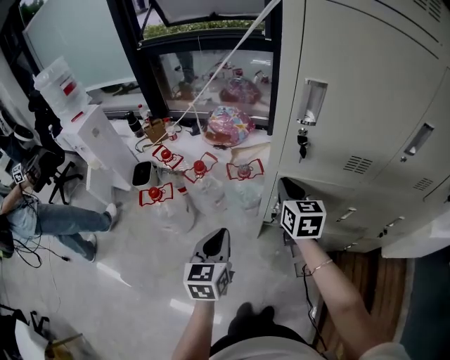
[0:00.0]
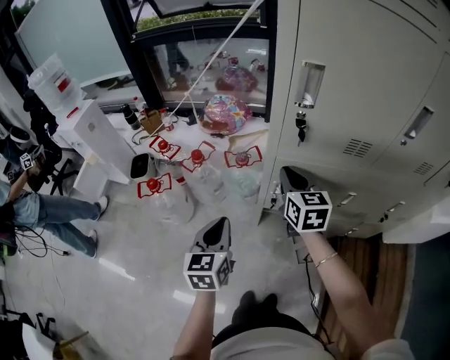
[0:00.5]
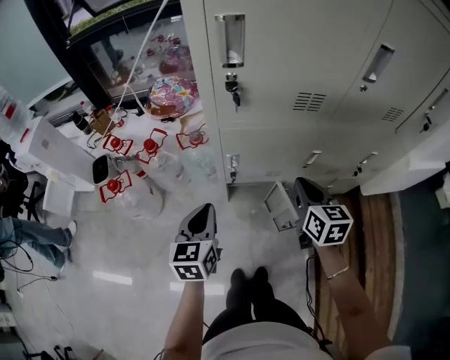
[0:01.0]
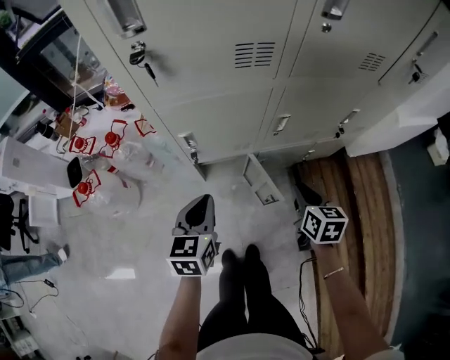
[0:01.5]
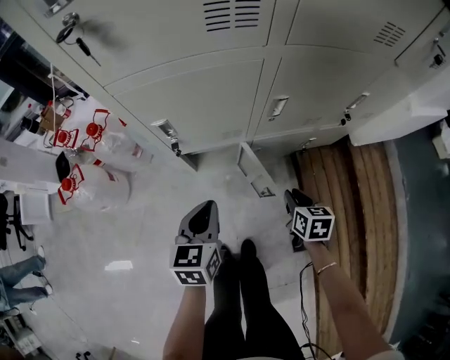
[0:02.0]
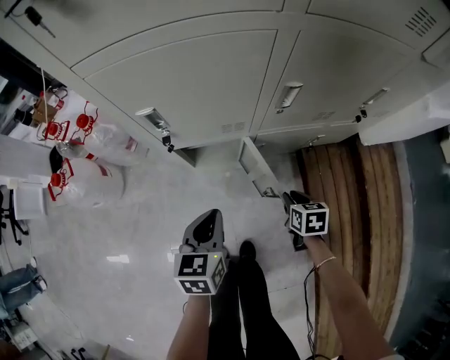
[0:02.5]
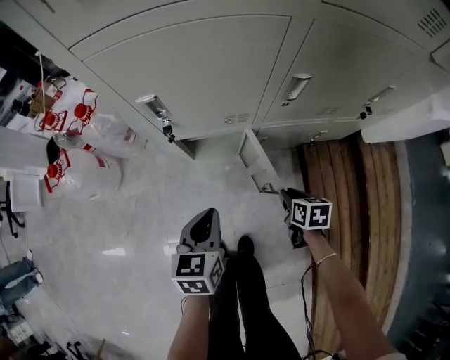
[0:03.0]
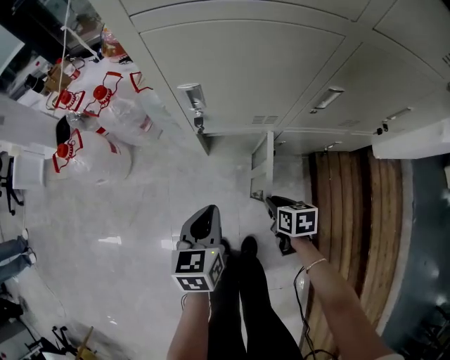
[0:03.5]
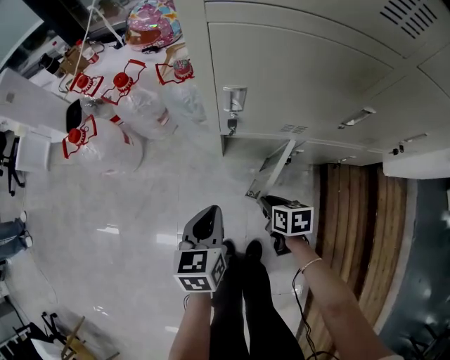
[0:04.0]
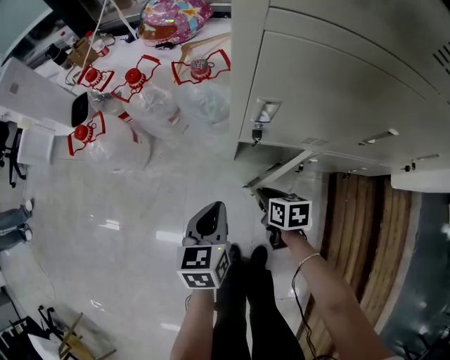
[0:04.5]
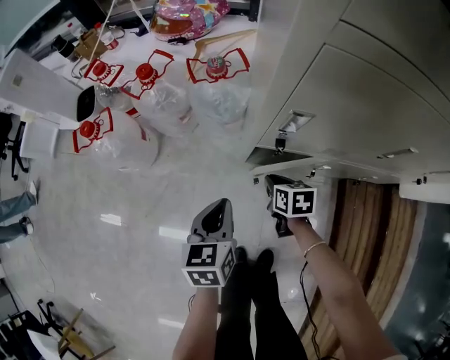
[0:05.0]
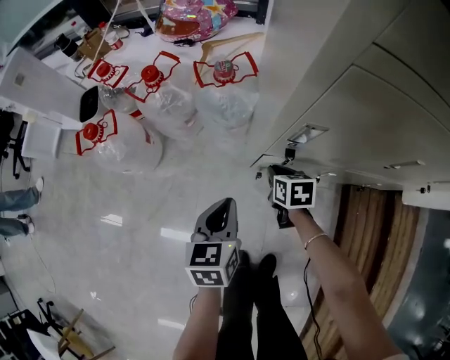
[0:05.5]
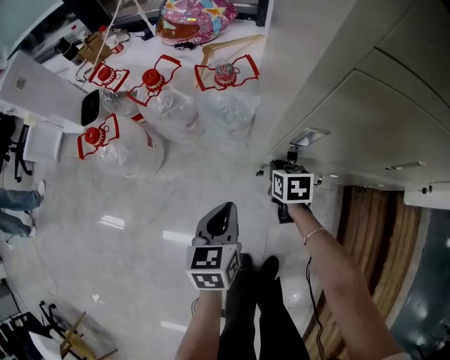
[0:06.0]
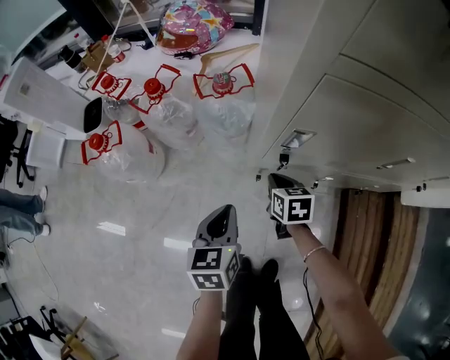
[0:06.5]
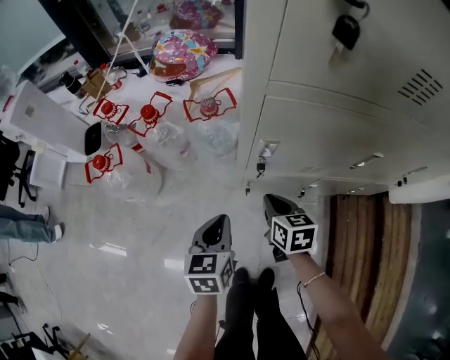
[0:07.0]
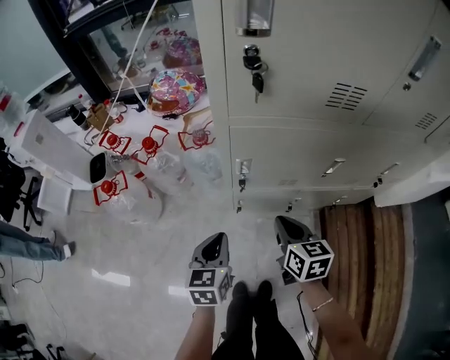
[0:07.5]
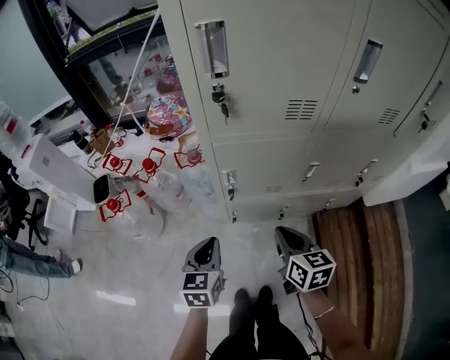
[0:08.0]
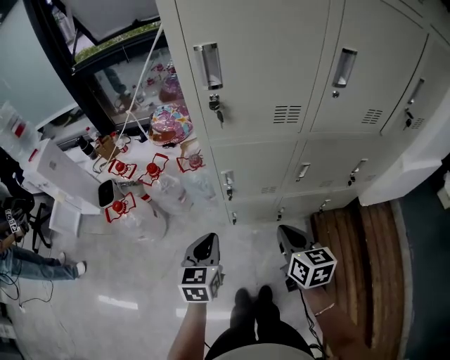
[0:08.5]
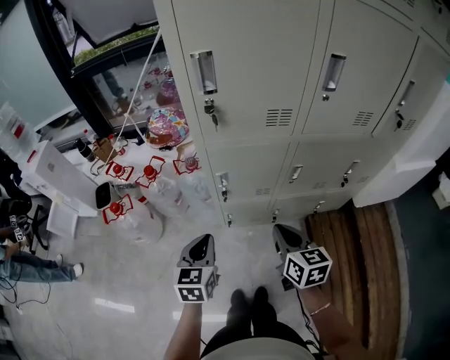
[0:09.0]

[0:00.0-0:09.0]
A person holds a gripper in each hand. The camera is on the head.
0:00.0 to 0:02.0: The right gripper travels downward, to the right and backward by roughly 50 cm, and changes its angle by roughly 40 degrees. The left gripper goes roughly 35 cm to the right and downward, and changes its angle by some 30 degrees.
0:02.0 to 0:04.5: The left gripper changes place by approximately 20 cm. Meanwhile the right gripper ends up roughly 35 cm from where it was, and changes its angle by some 30 degrees.
0:04.5 to 0:07.0: The left gripper moves upward, about 5 cm, while the right gripper travels upward by roughly 15 cm.
0:07.0 to 0:09.0: The left gripper goes some 25 cm upward and backward; the right gripper goes roughly 40 cm upward, backward and to the right.

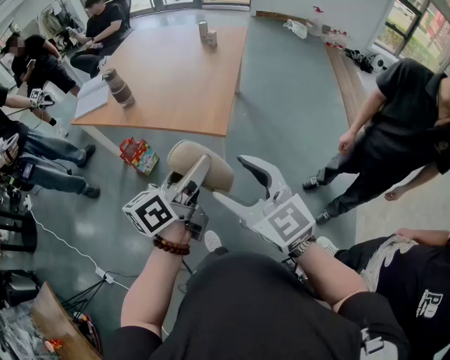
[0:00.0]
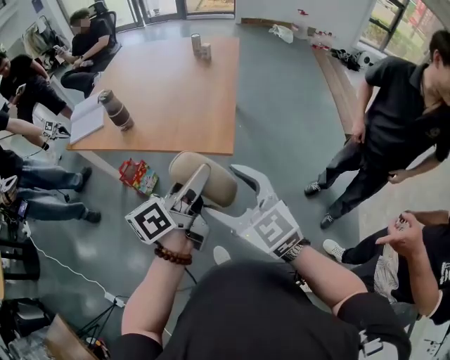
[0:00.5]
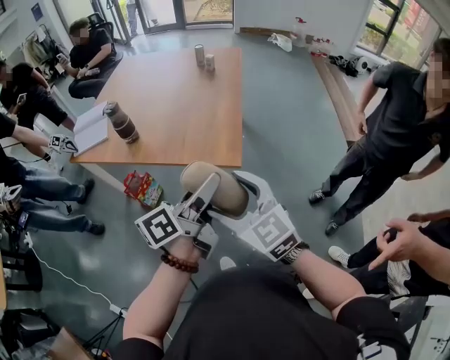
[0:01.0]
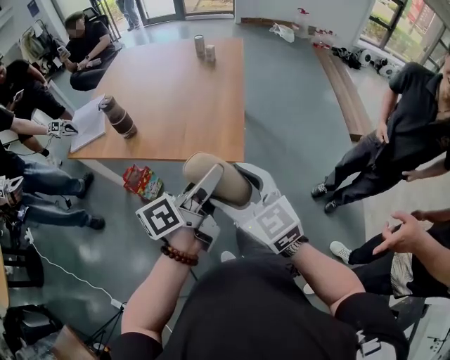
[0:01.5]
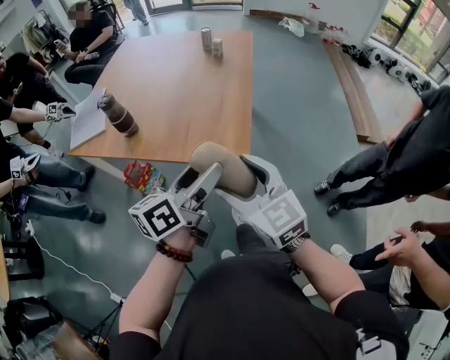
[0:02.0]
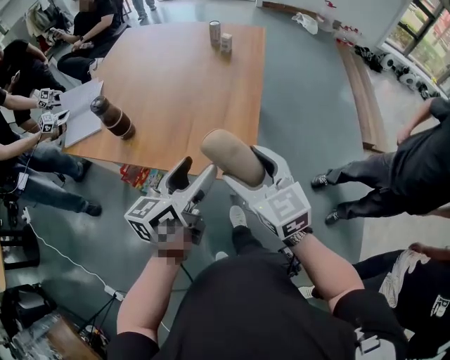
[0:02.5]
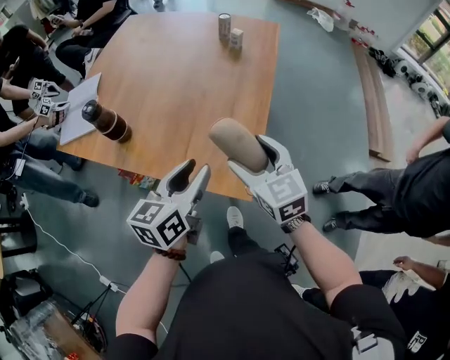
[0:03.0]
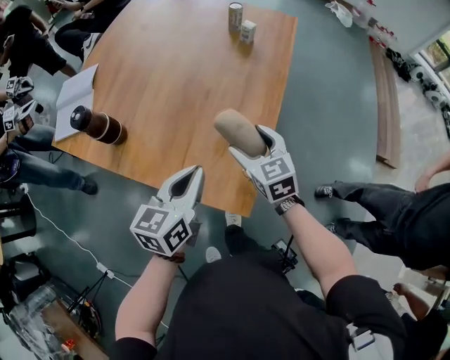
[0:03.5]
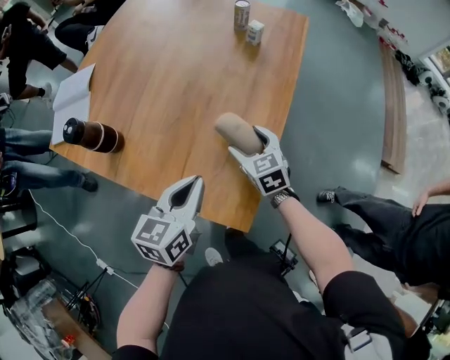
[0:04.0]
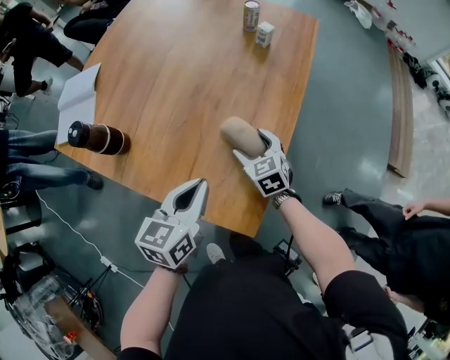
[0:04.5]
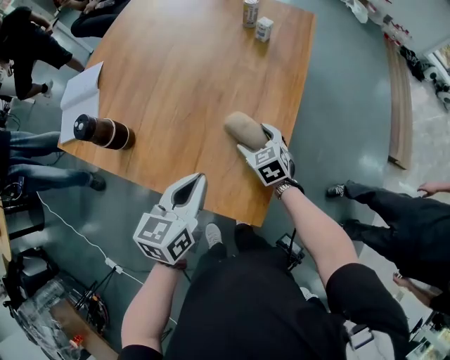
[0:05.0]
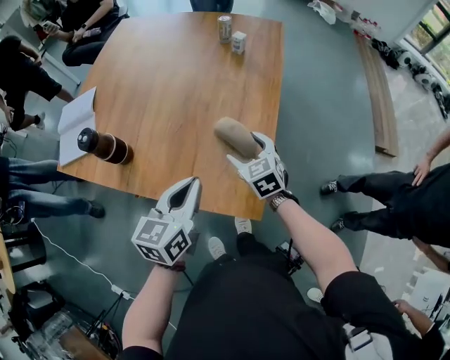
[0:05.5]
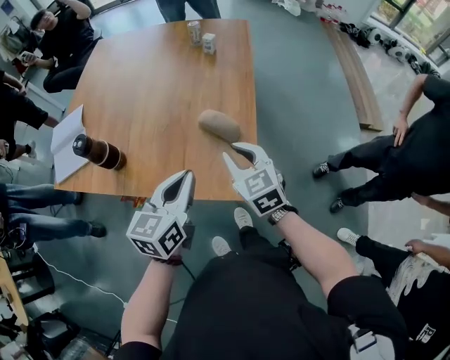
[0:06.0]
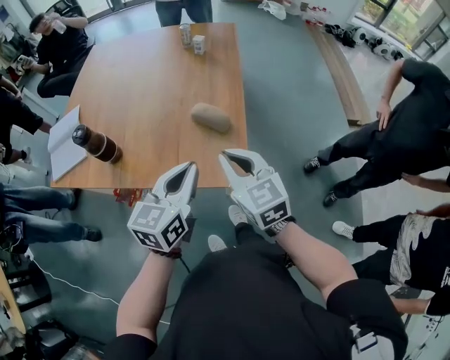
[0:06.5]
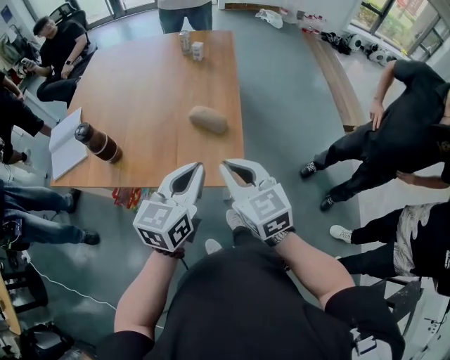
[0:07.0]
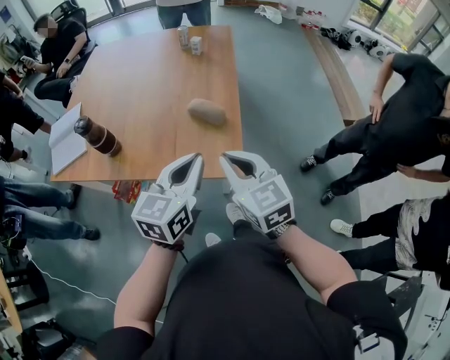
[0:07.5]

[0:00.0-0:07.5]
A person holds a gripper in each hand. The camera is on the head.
0:00.0 to 0:02.0: The right gripper moves forward and to the left, about 20 cm. Meanwhile the left gripper shifts roughly 15 cm forward.
0:02.0 to 0:04.0: The right gripper travels forward and downward by roughly 40 cm, and rotates approximately 20 degrees. The left gripper goes about 25 cm forward and downward, rotates about 30 degrees, and closes up.
0:04.0 to 0:05.5: There are only small adjustments of the grippers.
0:05.5 to 0:07.5: The right gripper travels backward and upward by about 30 cm, rotates roughly 20 degrees, and closes. Meanwhile the left gripper heads backward, upward and to the right, covering roughly 15 cm.

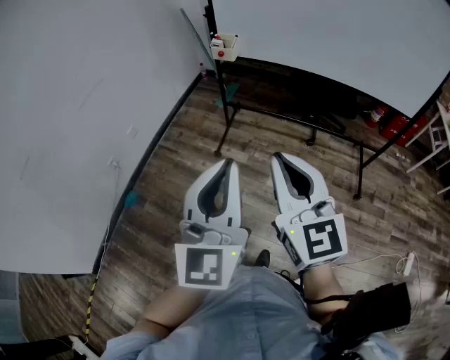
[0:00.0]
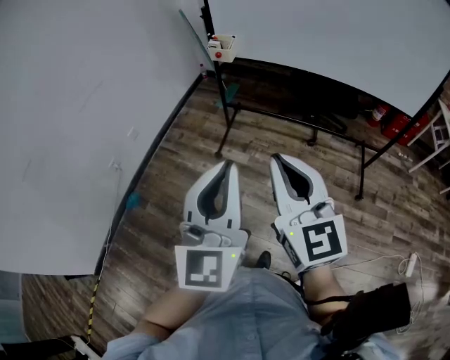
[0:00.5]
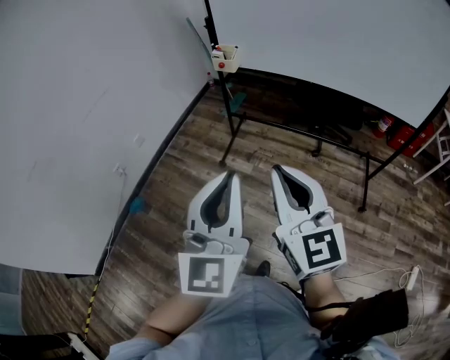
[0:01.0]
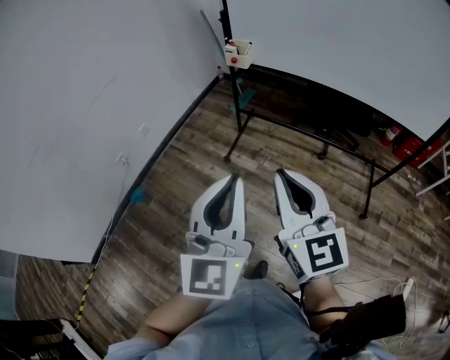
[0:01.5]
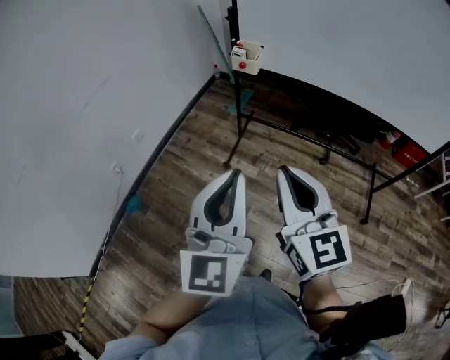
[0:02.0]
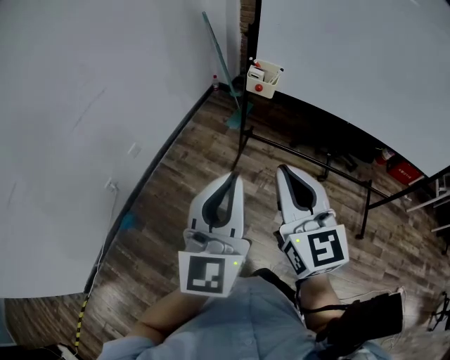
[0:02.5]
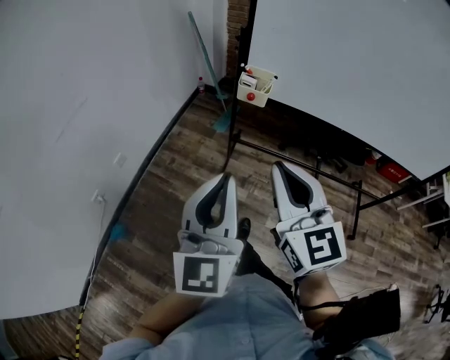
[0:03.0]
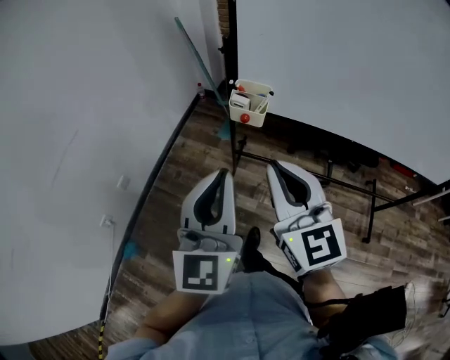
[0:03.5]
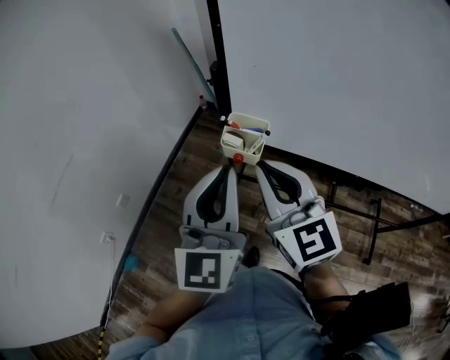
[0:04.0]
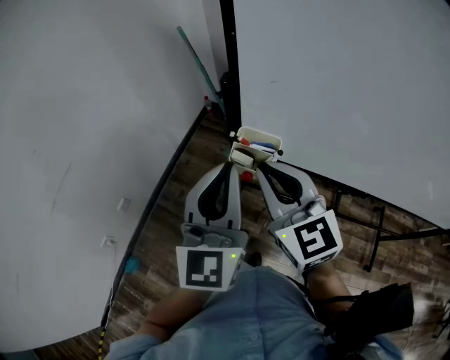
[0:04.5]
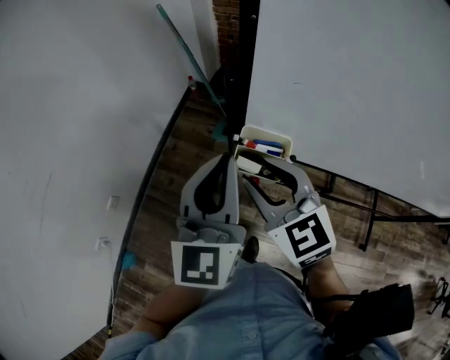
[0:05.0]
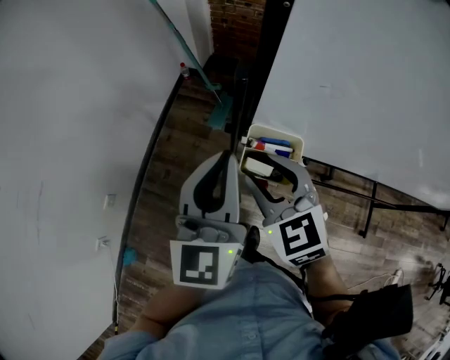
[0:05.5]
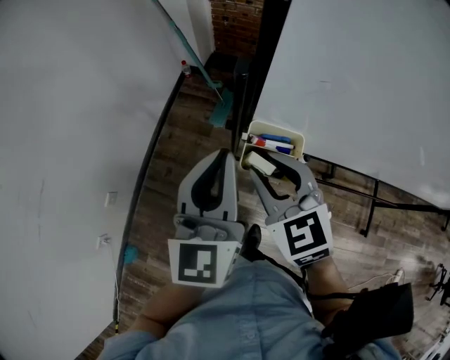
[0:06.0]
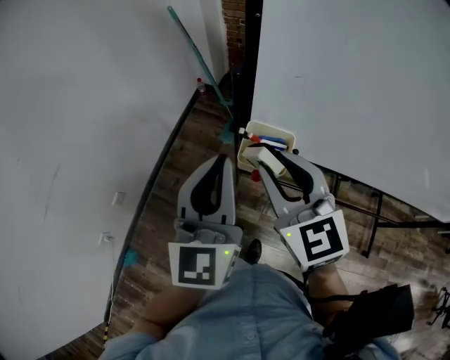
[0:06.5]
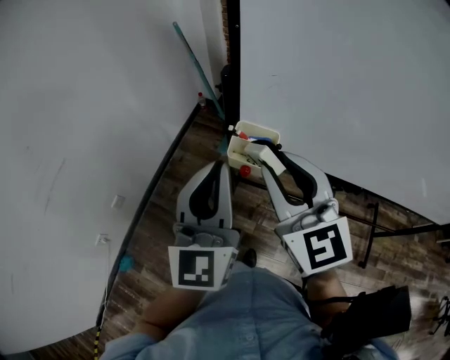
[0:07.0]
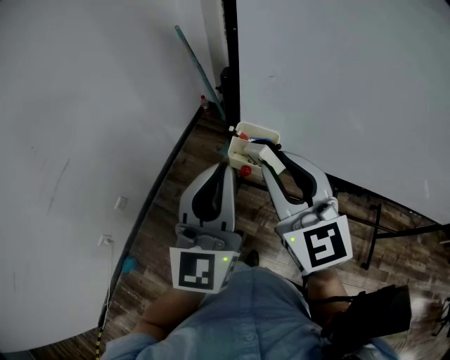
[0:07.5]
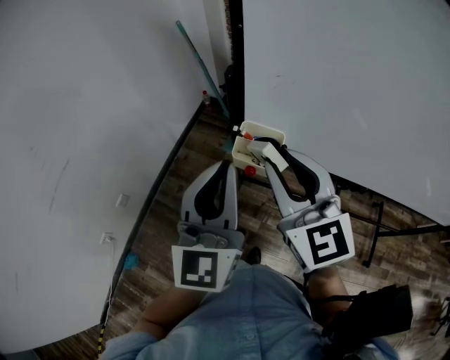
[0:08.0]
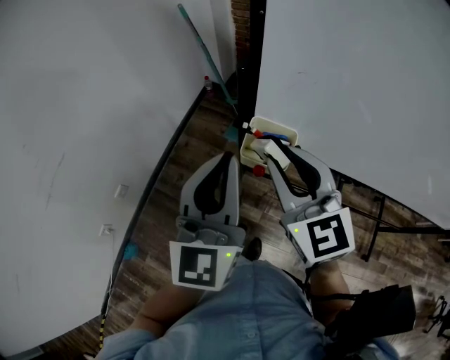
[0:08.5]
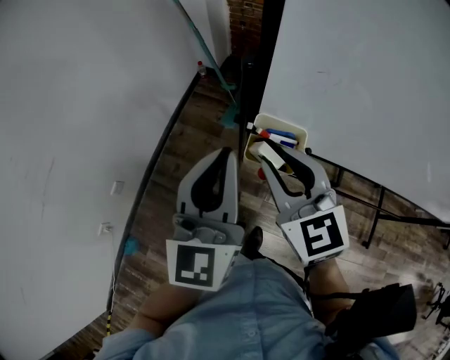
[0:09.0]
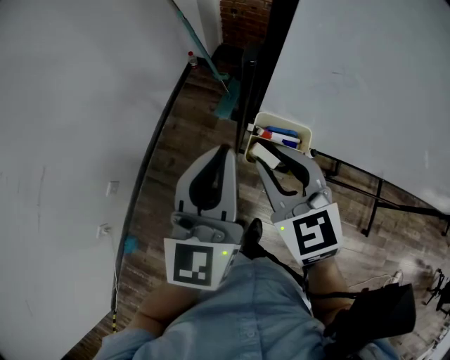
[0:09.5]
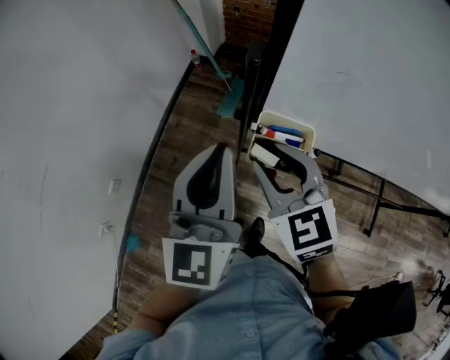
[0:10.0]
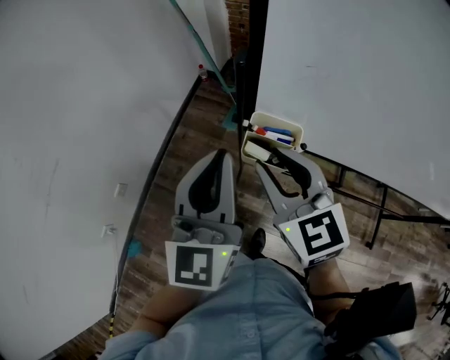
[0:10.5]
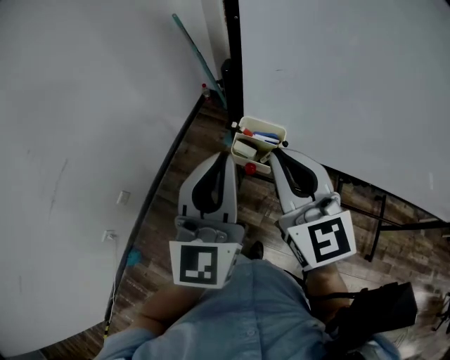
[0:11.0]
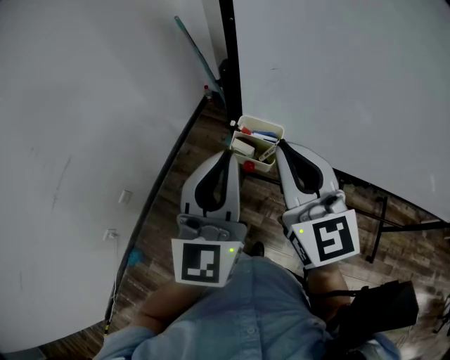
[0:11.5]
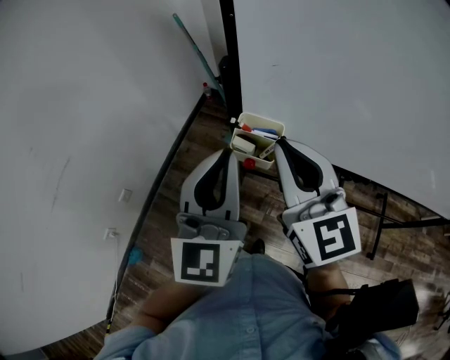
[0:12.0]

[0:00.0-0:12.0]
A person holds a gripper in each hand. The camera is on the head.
0:00.0 to 0:02.0: Both grippers travel together forward, some 15 cm.
0:02.0 to 0:04.0: The pair of grippers is taken forward, about 40 cm.
0:04.0 to 0:06.0: The two grippers go about 20 cm forward and downward. The right gripper turns by roughly 30 degrees, and opens its fingers.
0:06.0 to 0:08.0: The left gripper is displaced backward and upward by some 15 cm. The right gripper is displaced upward and backward by some 15 cm, and turns by approximately 20 degrees.
0:08.0 to 0:10.0: The right gripper is displaced downward and forward by roughly 15 cm, and turns by about 20 degrees. The left gripper is displaced forward and downward by about 10 cm.
0:10.0 to 0:12.0: The right gripper moves upward, backward and to the right, roughly 15 cm, swivels about 30 degrees, and closes, while the left gripper moves backward and upward, some 10 cm.
